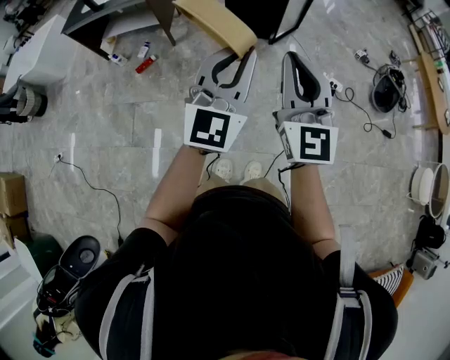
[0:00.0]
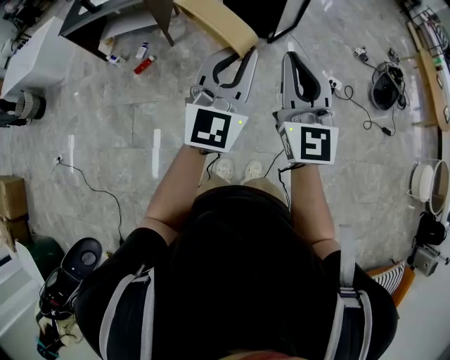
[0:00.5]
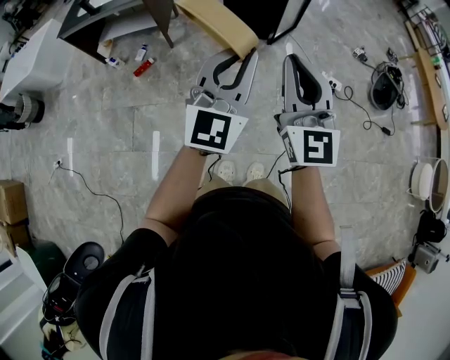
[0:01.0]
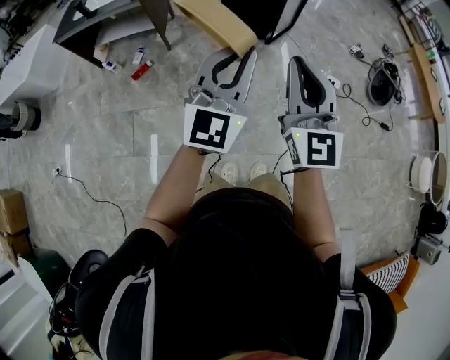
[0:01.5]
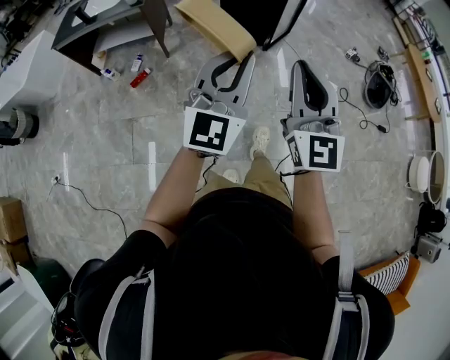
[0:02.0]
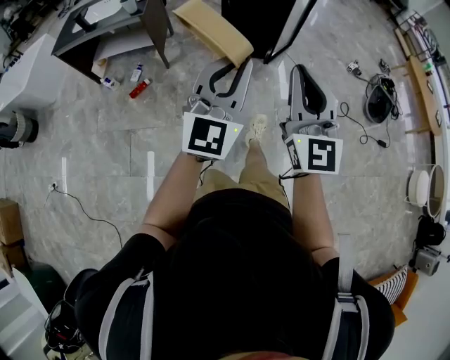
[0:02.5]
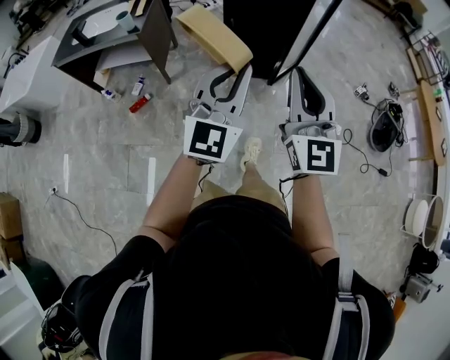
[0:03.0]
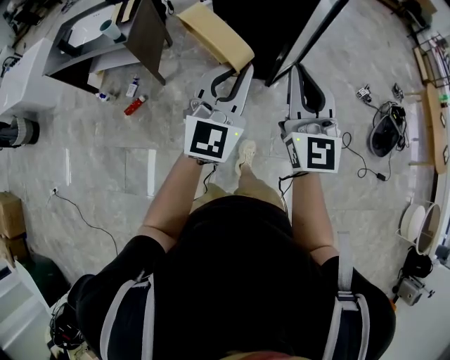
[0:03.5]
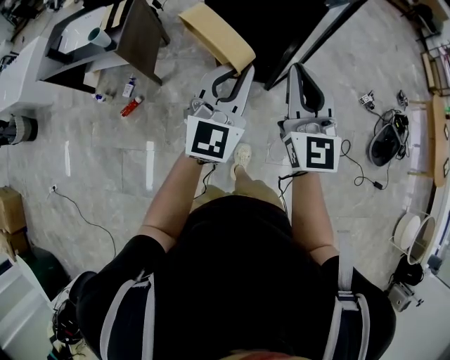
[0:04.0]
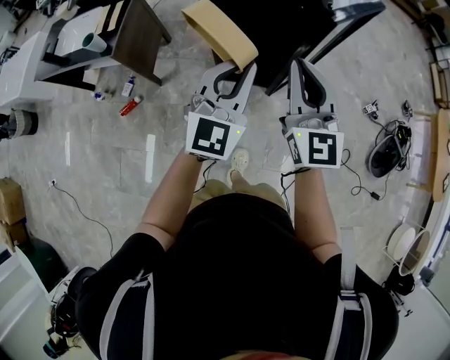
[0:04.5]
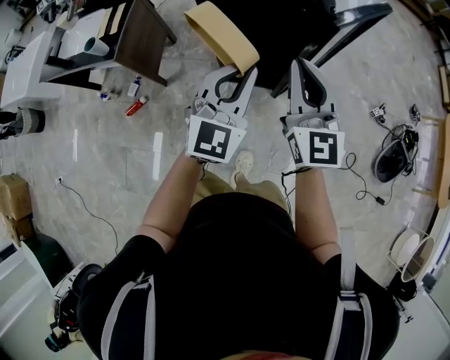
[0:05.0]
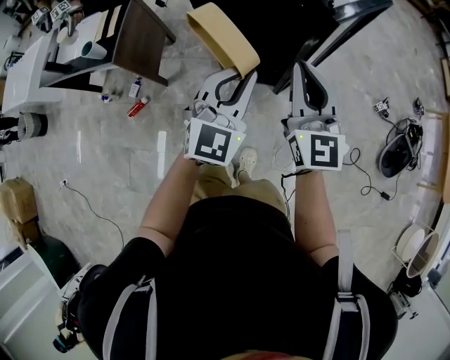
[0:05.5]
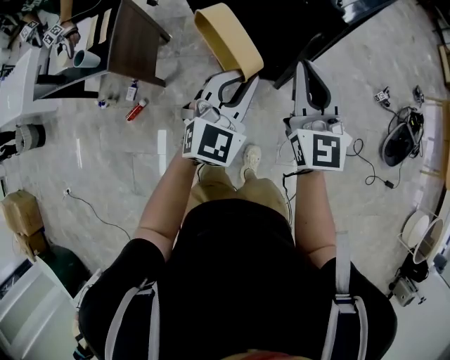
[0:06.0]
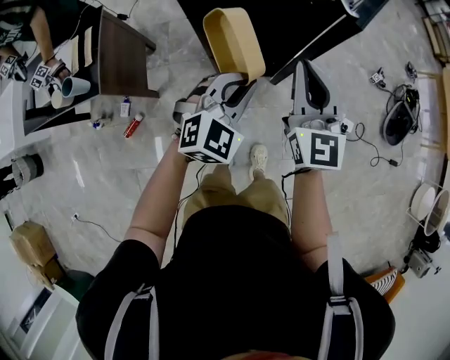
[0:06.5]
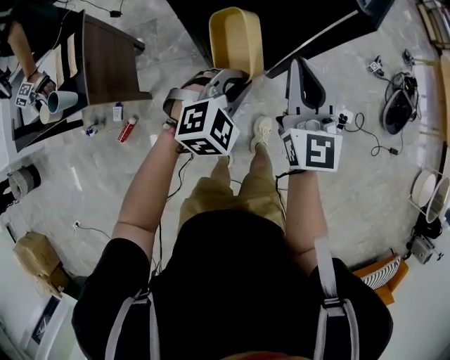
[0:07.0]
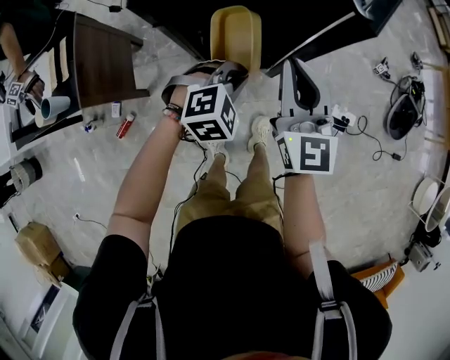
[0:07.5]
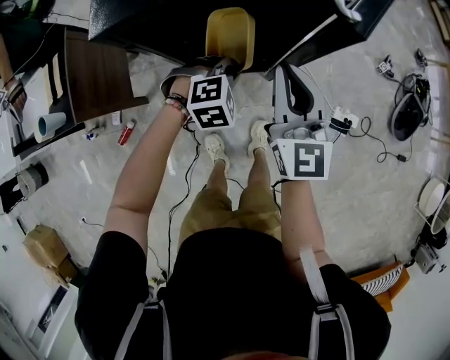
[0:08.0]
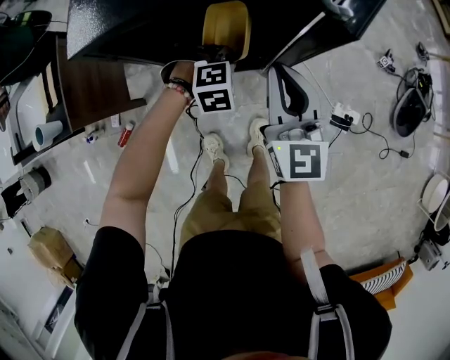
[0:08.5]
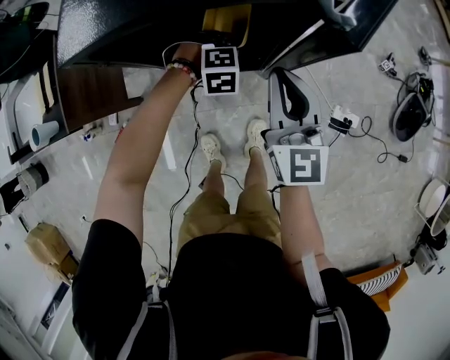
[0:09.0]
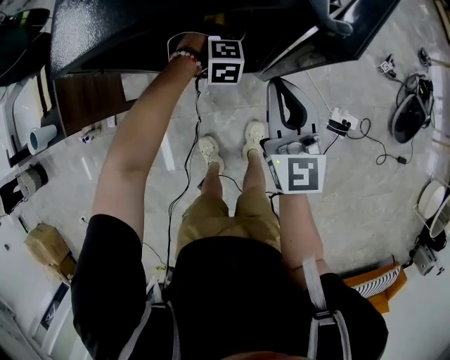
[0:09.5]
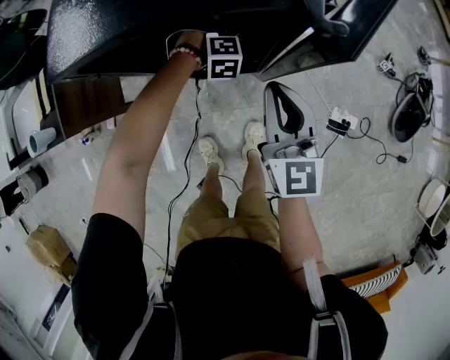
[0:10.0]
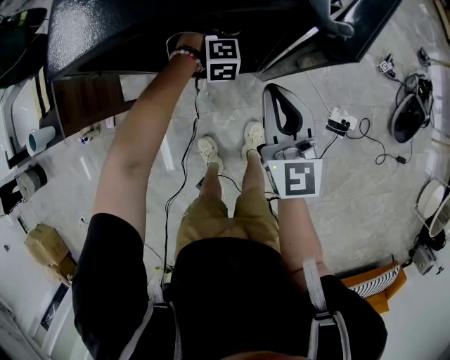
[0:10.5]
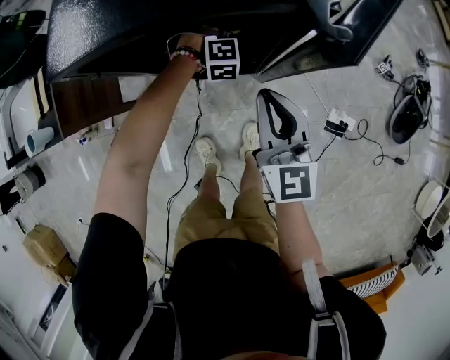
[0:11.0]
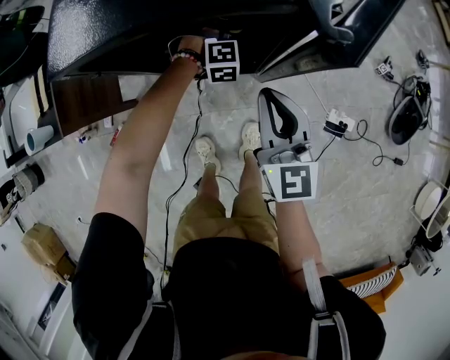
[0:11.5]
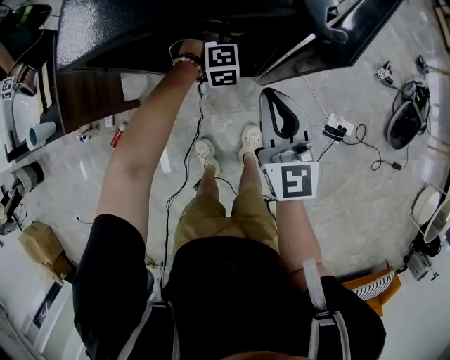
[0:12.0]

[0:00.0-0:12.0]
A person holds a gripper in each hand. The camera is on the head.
0:00.0 to 0:02.0: Both grippers move to the left, about 10 cm.
0:02.0 to 0:04.0: The pair of grippers is taken forward, about 60 cm.
0:04.0 to 0:06.0: The right gripper goes roughly 20 cm forward, while the left gripper goes approximately 20 cm forward and downward.
0:06.0 to 0:08.0: The left gripper goes roughly 35 cm downward and forward, and tilts its fingers roughly 50 degrees downward. The right gripper is displaced forward and downward by approximately 20 cm.
0:08.0 to 0:10.0: The left gripper travels forward and downward by approximately 20 cm, and swivels about 20 degrees. The right gripper goes approximately 5 cm downward.
0:10.0 to 0:12.0: The left gripper opens.

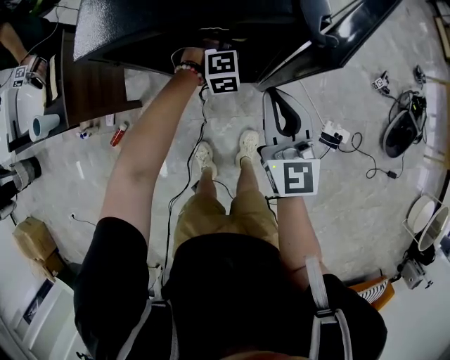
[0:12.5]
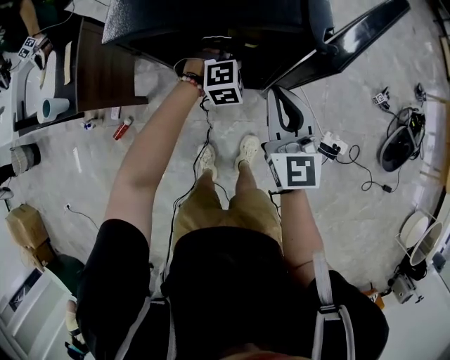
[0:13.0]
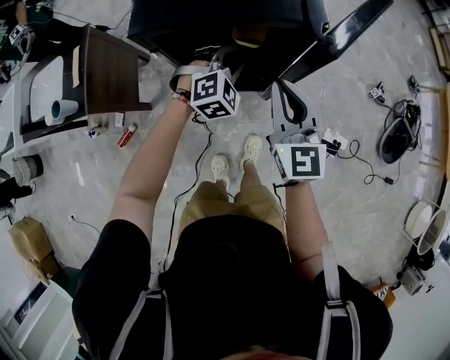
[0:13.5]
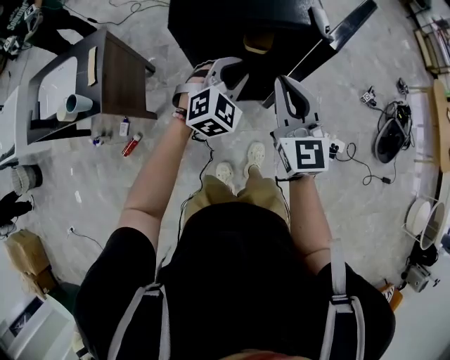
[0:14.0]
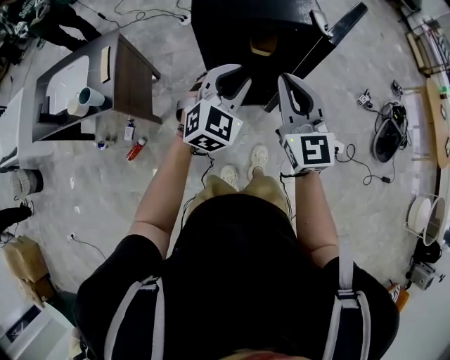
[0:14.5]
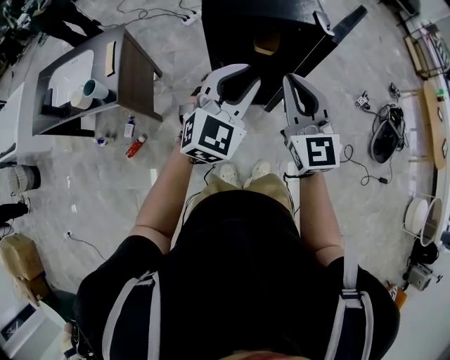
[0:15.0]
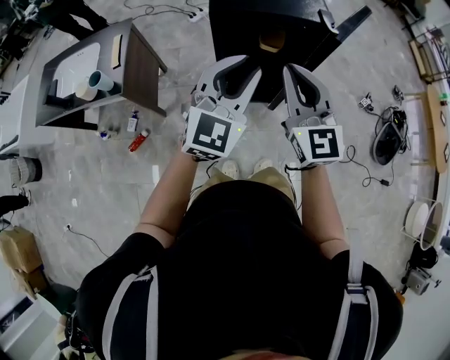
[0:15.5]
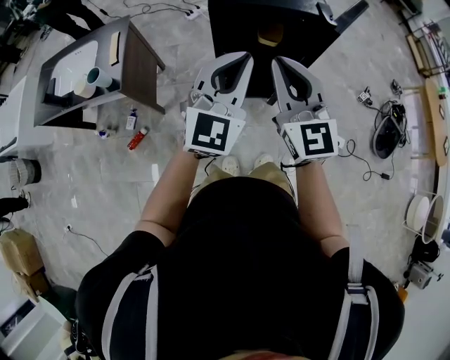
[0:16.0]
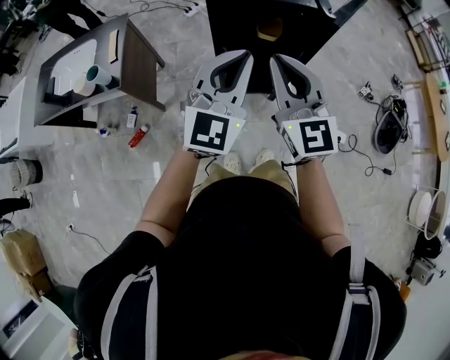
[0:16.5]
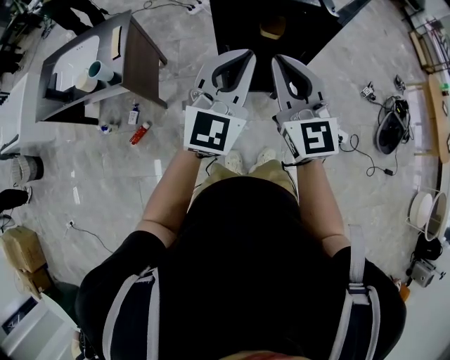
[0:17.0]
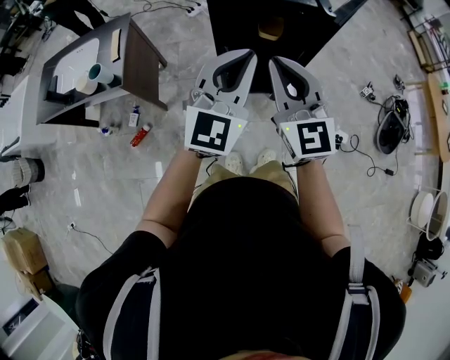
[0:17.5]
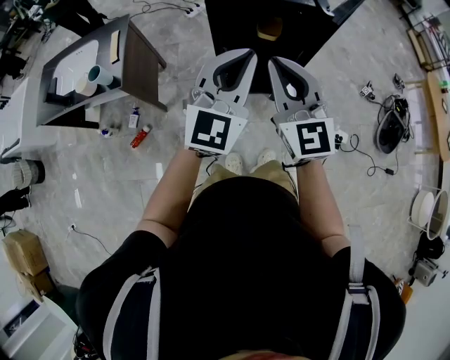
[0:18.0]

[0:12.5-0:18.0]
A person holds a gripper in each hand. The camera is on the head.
0:12.5 to 0:14.5: The right gripper heads upward, backward and to the left, covering some 30 cm. The left gripper is displaced upward and backward by roughly 50 cm, and tilts its fingers roughly 30 degrees upward.
0:14.5 to 0:16.0: The right gripper travels backward and to the left by roughly 10 cm, while the left gripper travels upward and backward by approximately 15 cm, changes its angle by some 20 degrees, and closes.
0:16.0 to 0:18.0: The grippers move only a little.

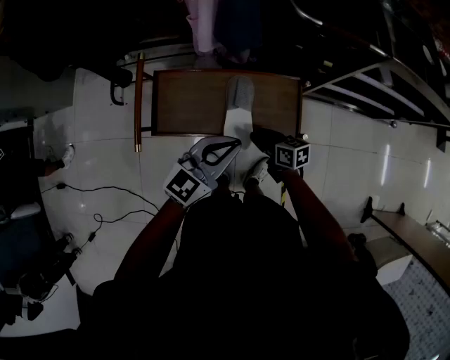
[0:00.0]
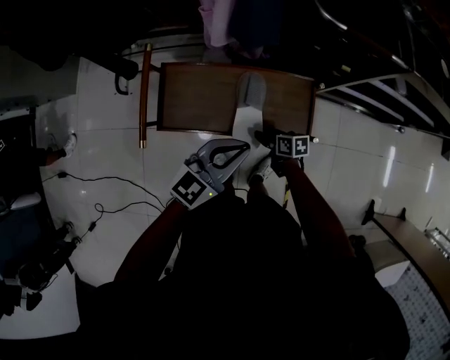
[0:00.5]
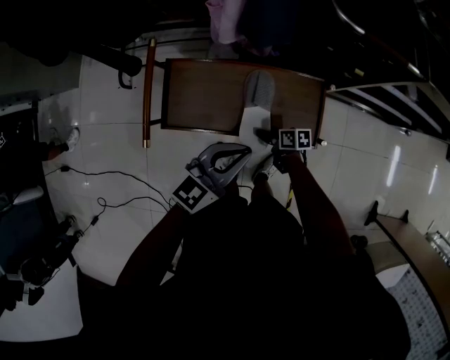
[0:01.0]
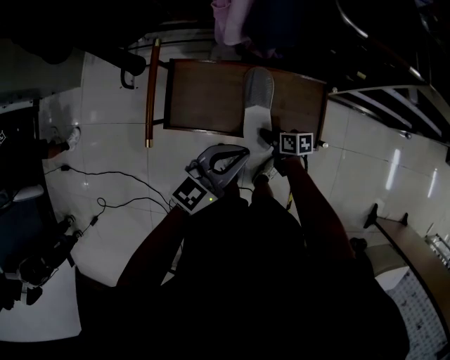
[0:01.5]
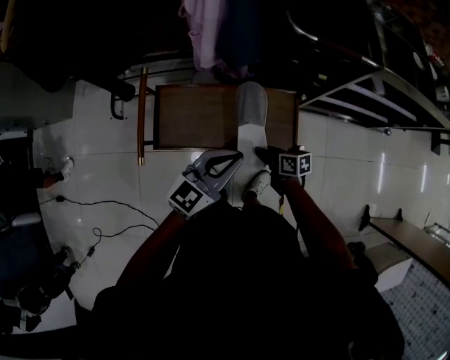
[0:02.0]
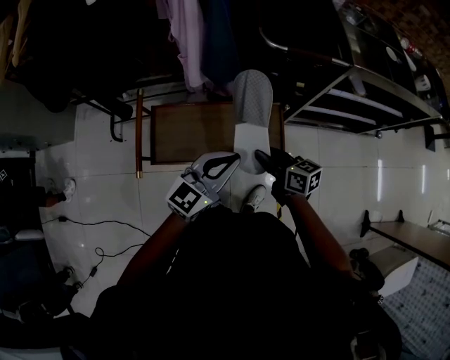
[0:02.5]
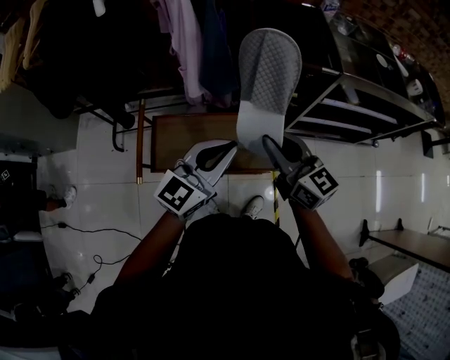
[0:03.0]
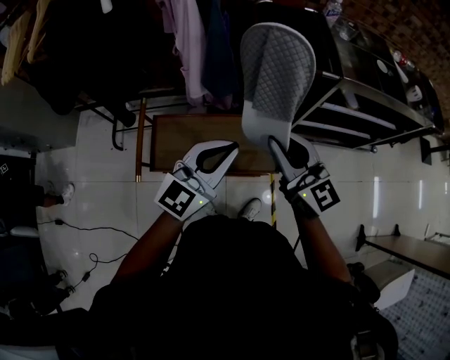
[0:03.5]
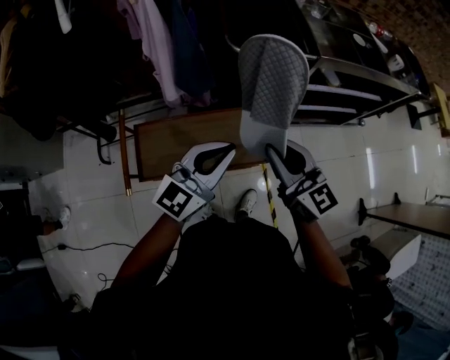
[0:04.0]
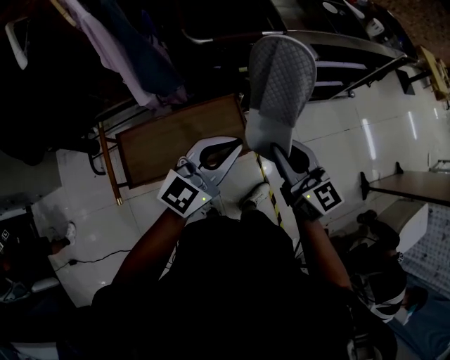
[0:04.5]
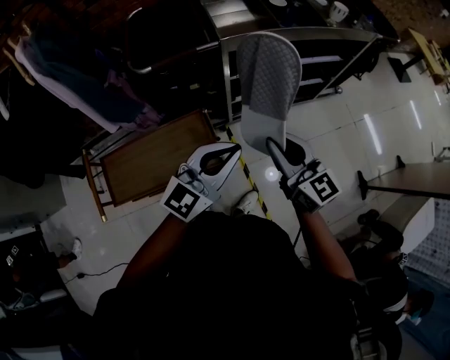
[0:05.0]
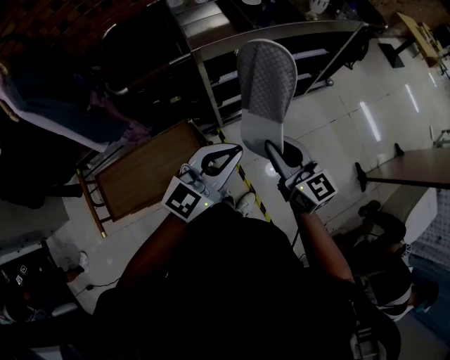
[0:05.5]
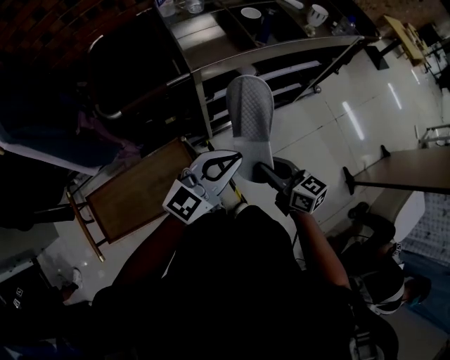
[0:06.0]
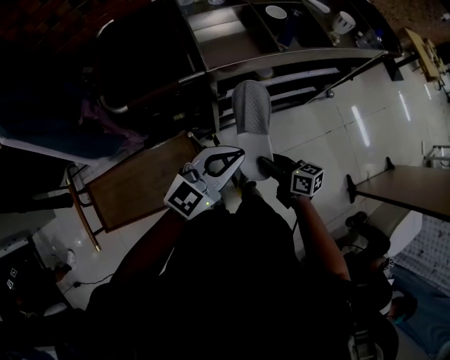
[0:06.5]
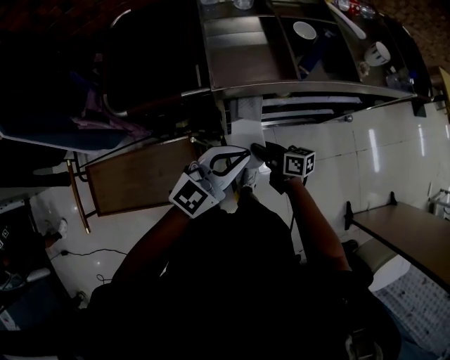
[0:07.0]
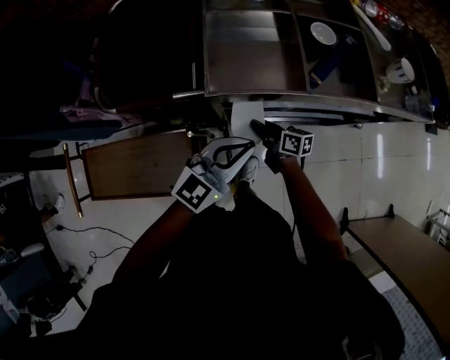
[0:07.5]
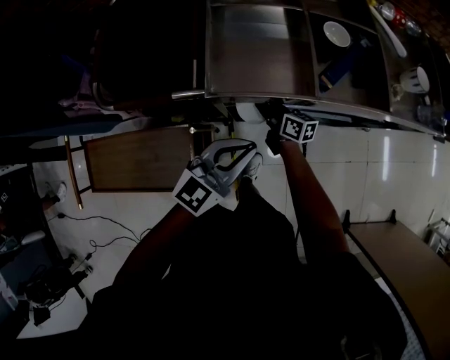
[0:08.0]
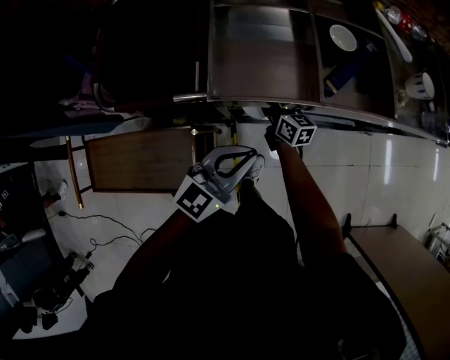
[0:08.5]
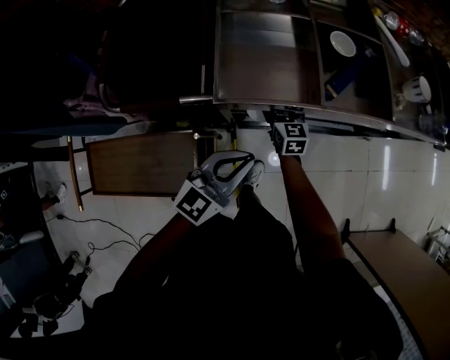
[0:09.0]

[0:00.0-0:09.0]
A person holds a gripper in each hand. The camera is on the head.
0:00.0 to 0:02.0: The right gripper travels downward and back again, roughly 15 cm each way.
0:02.0 to 0:04.5: The left gripper moves roughly 20 cm, and swivels some 20 degrees; the right gripper heads upward, covering approximately 35 cm, and swivels roughly 60 degrees.
0:04.5 to 0:07.0: The right gripper is displaced forward, downward and to the right by approximately 40 cm, and changes its angle by about 50 degrees. The left gripper travels forward and to the right by about 35 cm.
0:07.0 to 0:09.0: The left gripper is displaced downward and forward by approximately 10 cm; the right gripper travels forward by about 20 cm, rotates about 50 degrees, and opens its fingers.
